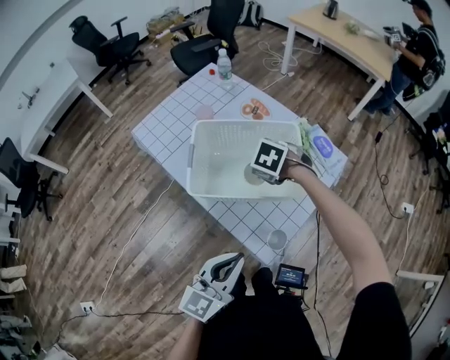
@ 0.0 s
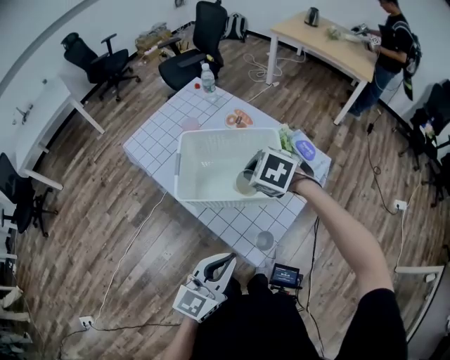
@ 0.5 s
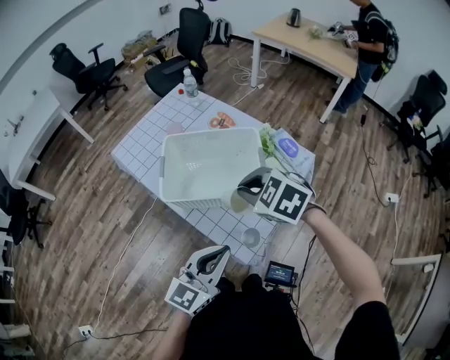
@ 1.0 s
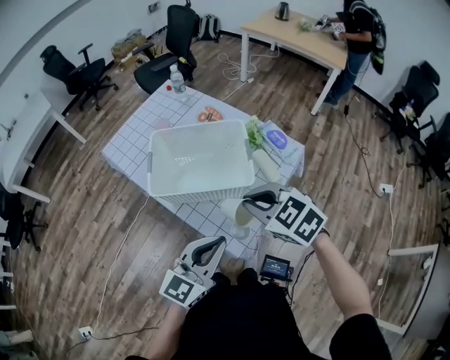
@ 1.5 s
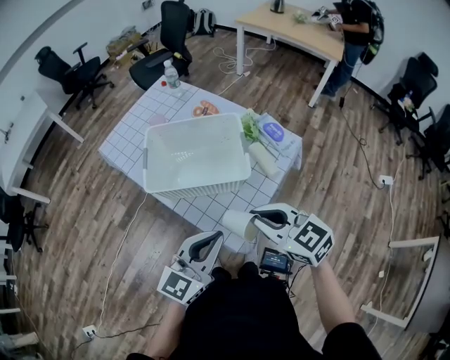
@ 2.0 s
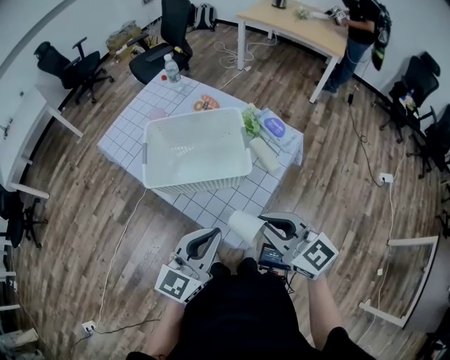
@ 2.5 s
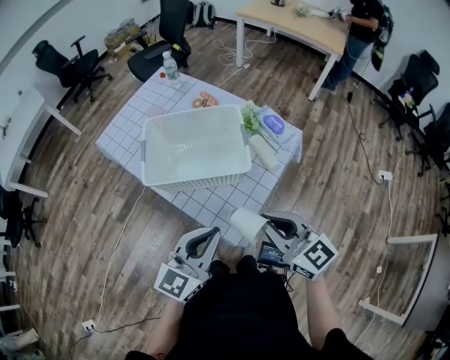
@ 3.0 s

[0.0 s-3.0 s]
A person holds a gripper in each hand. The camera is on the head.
0.0 to 1.5 s: The right gripper goes roughly 25 cm backward and upward, and swivels about 30 degrees; the left gripper moves to the right, roughly 5 cm.
1.5 to 3.0 s: The right gripper travels backward by approximately 10 cm, and tips its fingers upward by about 30 degrees.

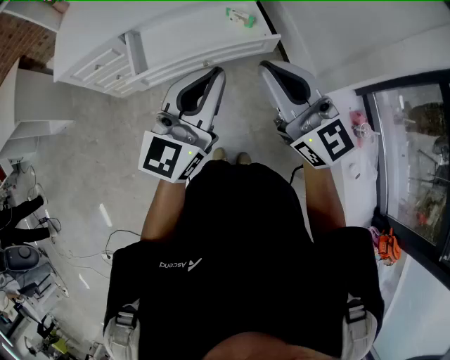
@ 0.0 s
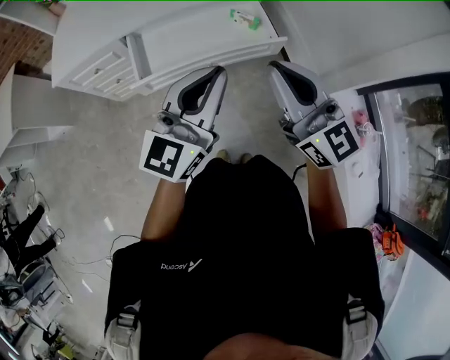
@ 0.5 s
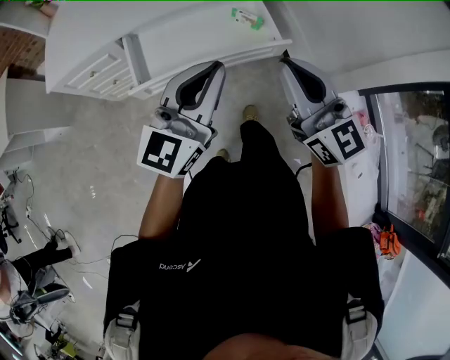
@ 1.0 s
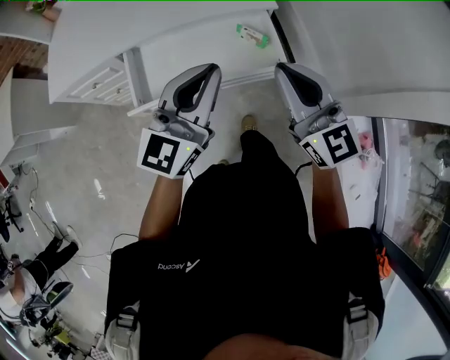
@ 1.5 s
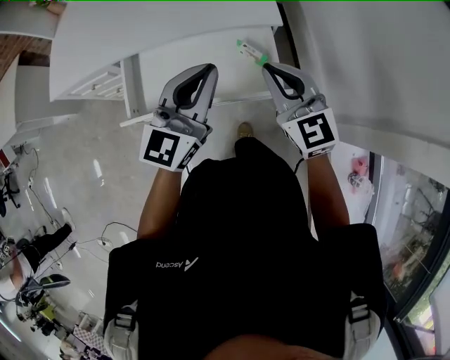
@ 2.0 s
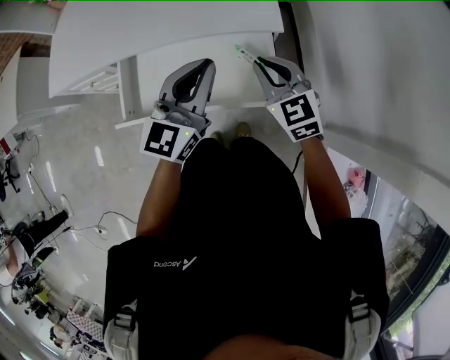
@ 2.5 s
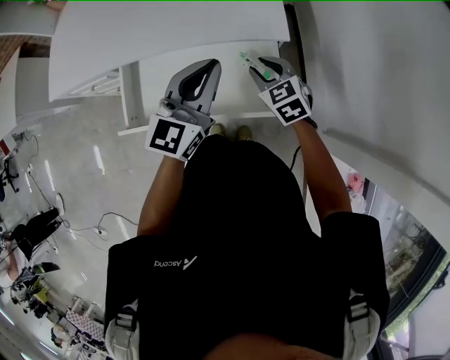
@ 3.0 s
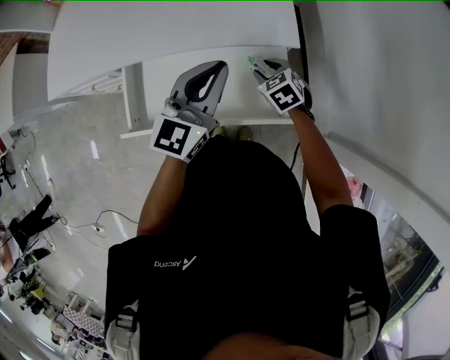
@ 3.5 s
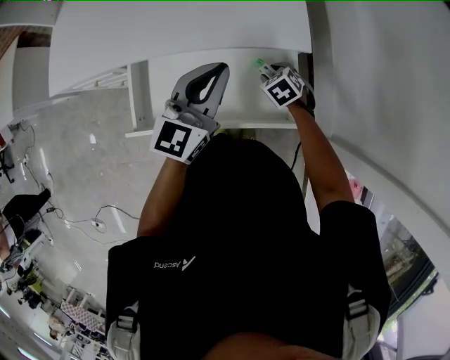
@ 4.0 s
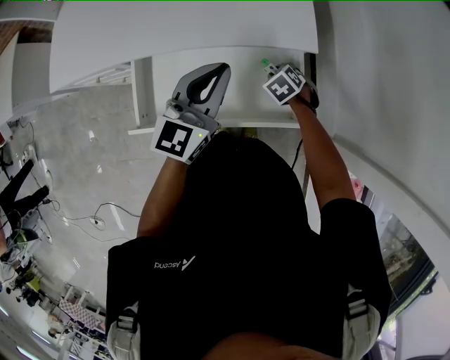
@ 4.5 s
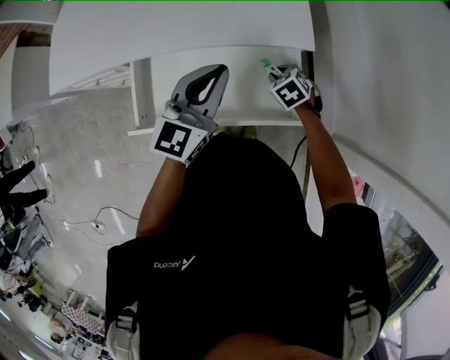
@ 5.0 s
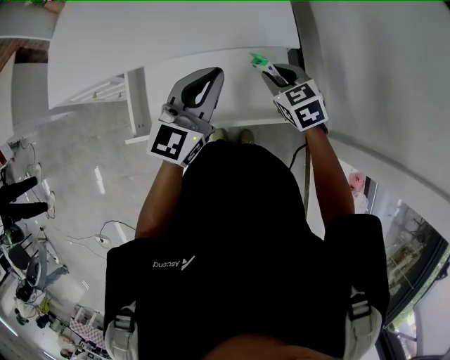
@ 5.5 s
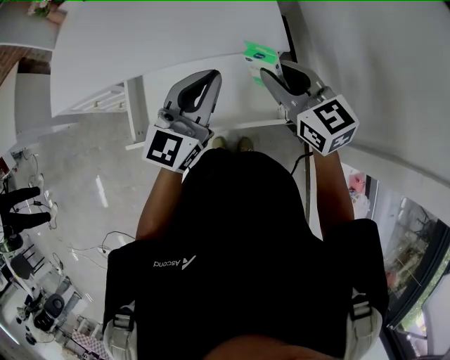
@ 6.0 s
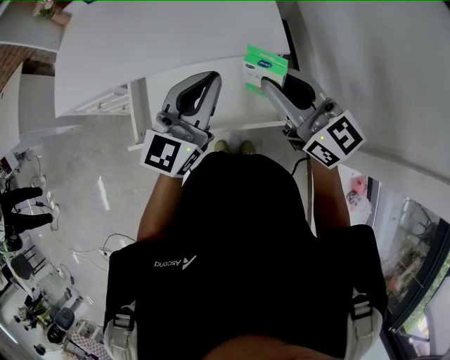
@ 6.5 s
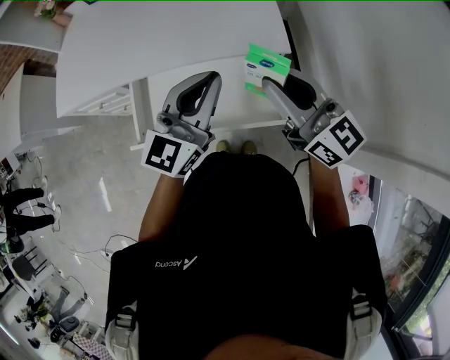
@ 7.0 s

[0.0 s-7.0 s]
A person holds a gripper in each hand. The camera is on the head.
0.0 to 2.0 s: The right gripper heads forward and downward, covering approximately 30 cm, and rotates some 20 degrees. The left gripper shifts roughly 30 cm forward.
2.0 to 3.5 s: The right gripper moves downward and forward, about 30 cm, points its fingers approximately 40 degrees further downward, and opens up. Meanwhile the left gripper moves forward and downward, about 15 cm.
5.0 to 7.0 s: The right gripper goes roughly 35 cm upward, and points its fingers some 70 degrees further upward, while the left gripper shifts some 10 cm upward.

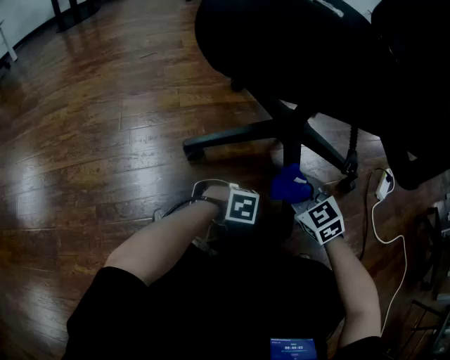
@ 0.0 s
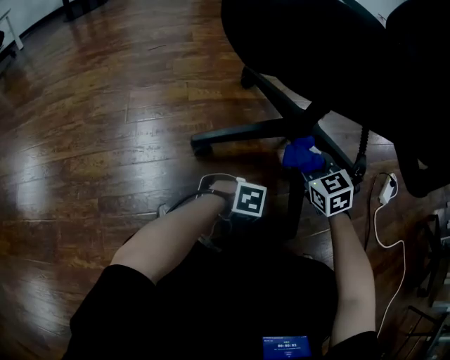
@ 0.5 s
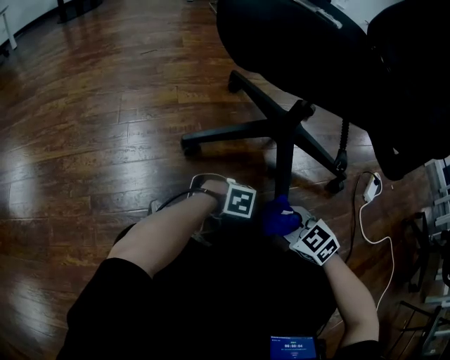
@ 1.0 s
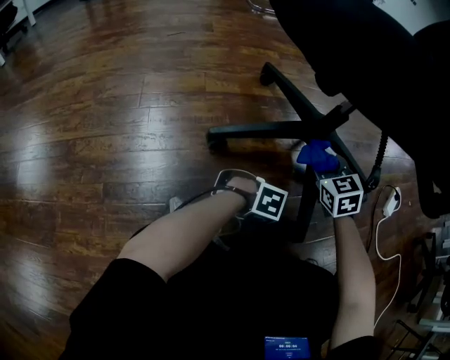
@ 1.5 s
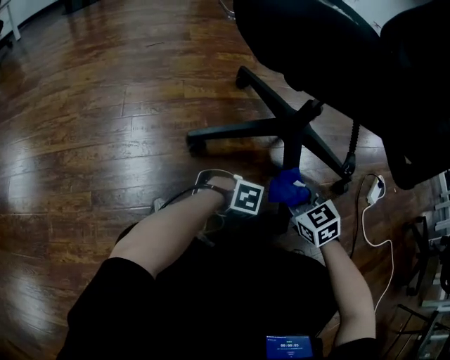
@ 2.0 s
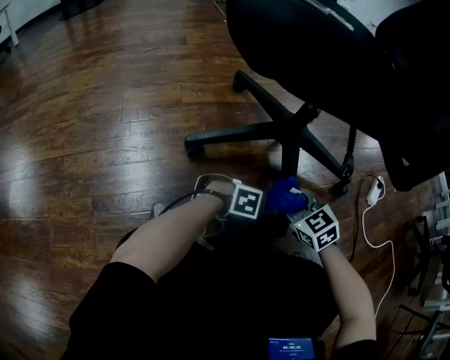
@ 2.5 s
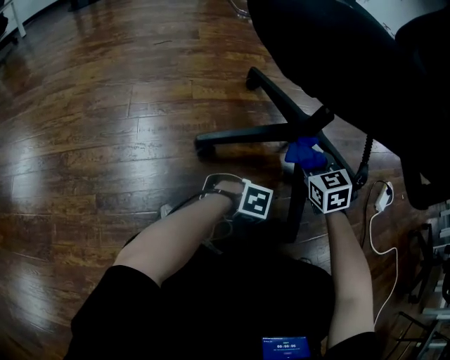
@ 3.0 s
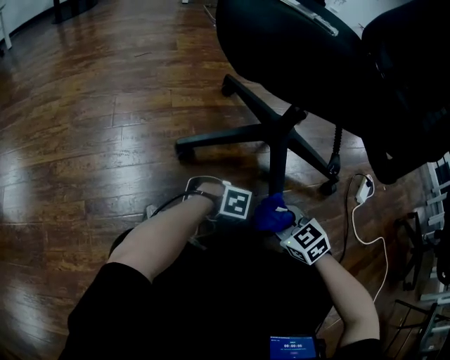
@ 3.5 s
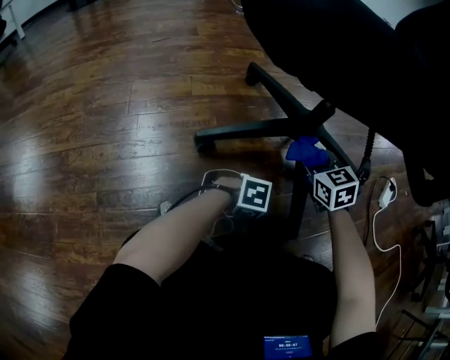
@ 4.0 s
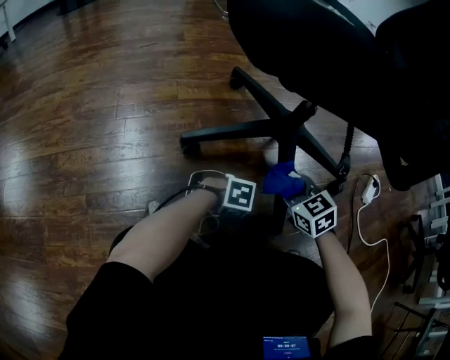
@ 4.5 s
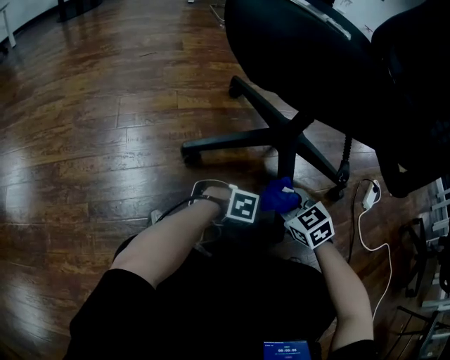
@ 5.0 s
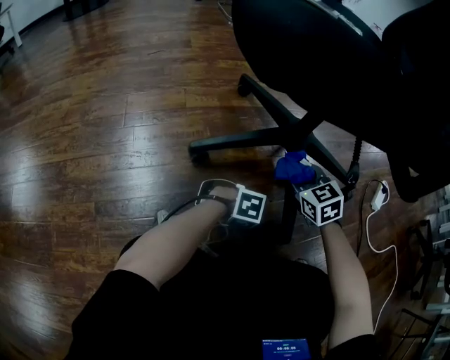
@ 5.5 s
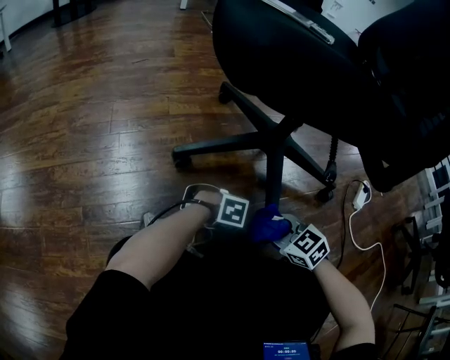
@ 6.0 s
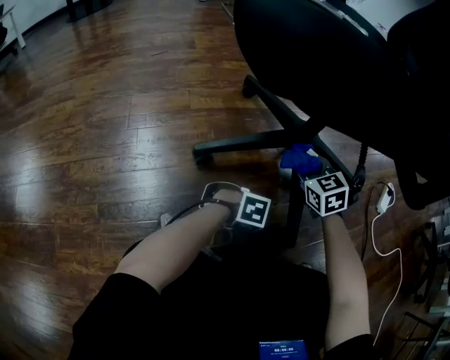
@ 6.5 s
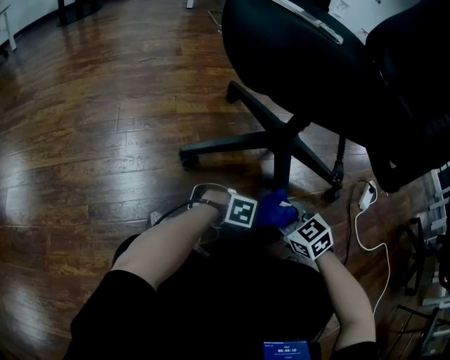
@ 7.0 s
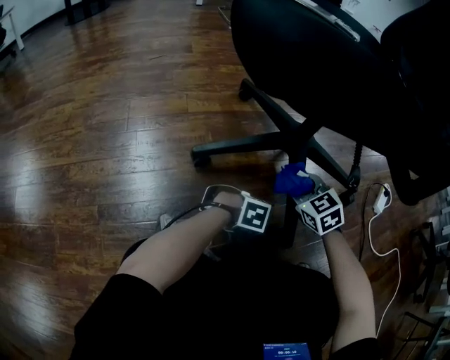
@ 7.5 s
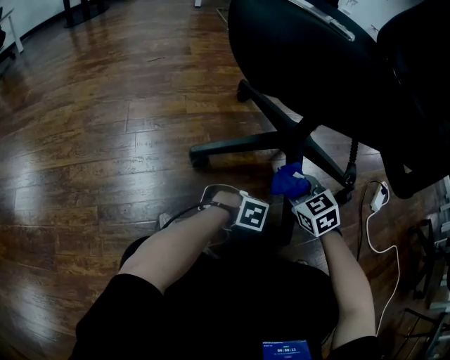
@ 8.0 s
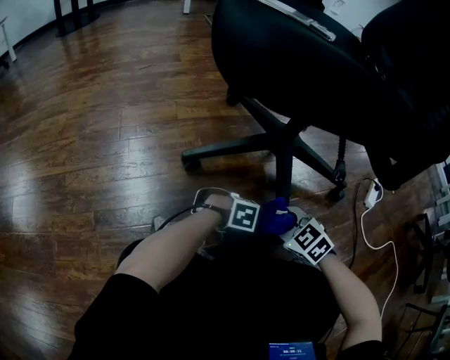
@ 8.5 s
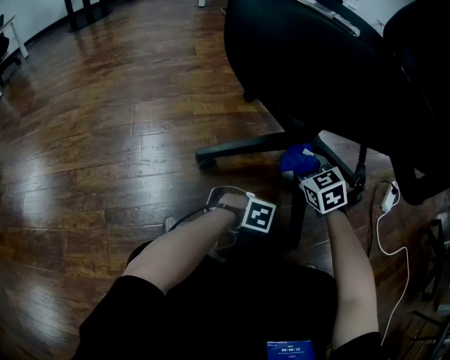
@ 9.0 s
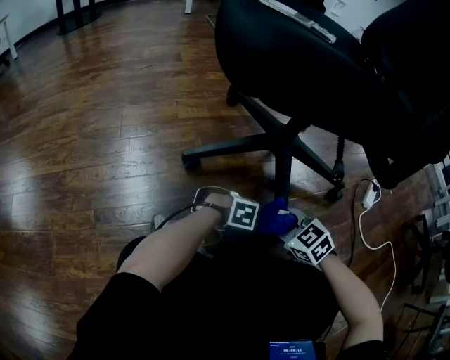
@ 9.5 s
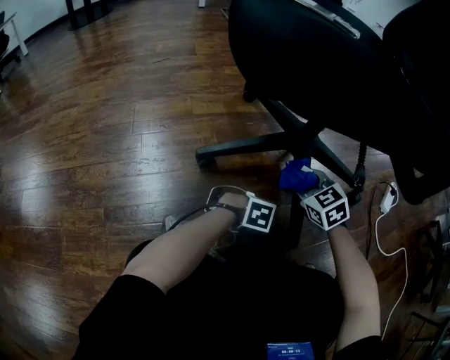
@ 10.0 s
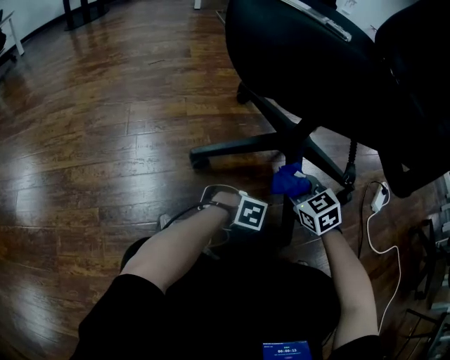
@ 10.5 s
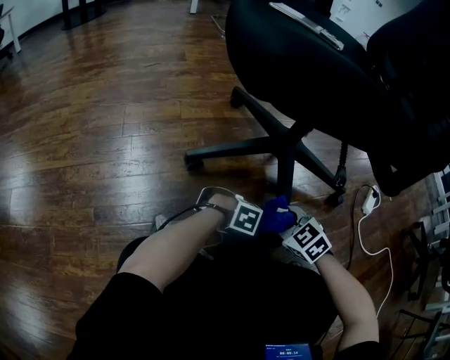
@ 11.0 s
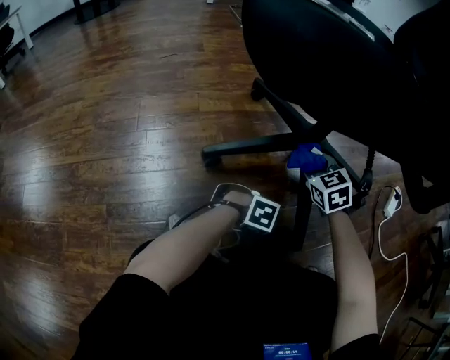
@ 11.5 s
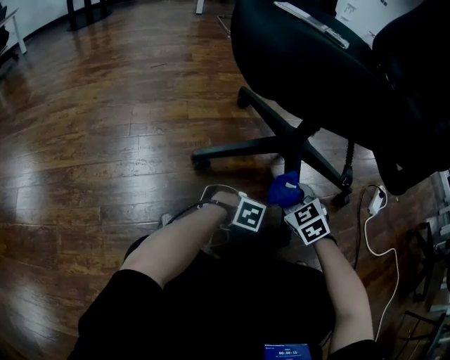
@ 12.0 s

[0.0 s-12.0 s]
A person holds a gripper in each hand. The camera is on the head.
2.0 to 4.0 s: The right gripper moves about 10 cm.
4.0 to 6.0 s: The right gripper shifts by approximately 20 cm, and changes its angle by roughly 30 degrees.

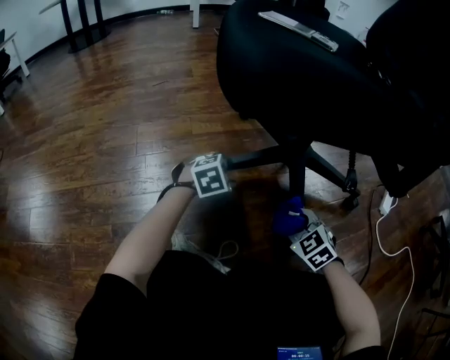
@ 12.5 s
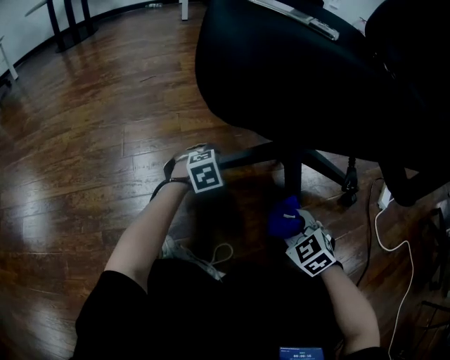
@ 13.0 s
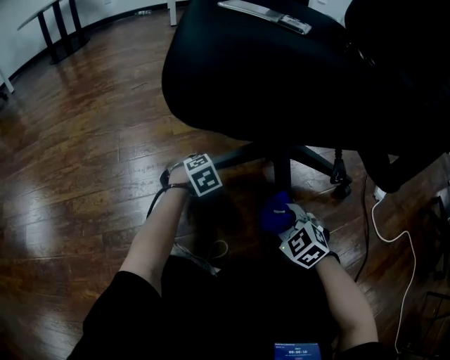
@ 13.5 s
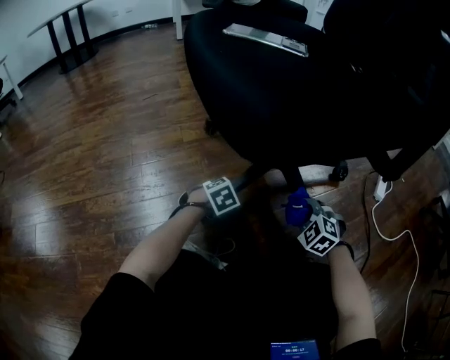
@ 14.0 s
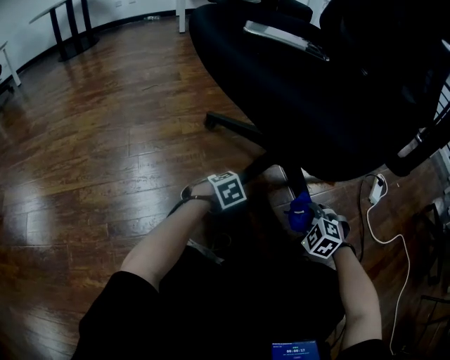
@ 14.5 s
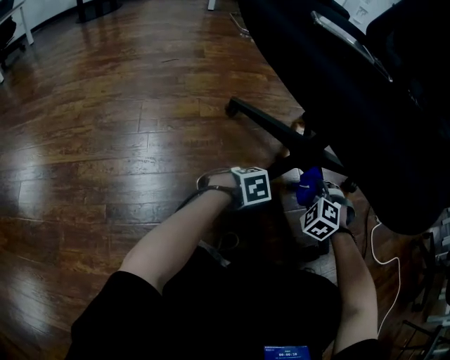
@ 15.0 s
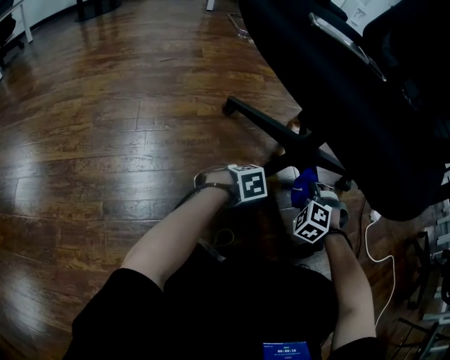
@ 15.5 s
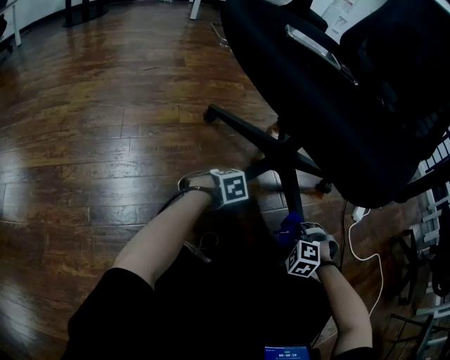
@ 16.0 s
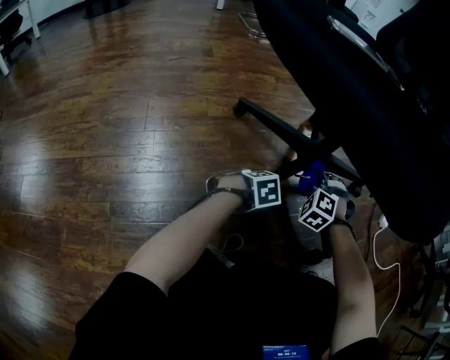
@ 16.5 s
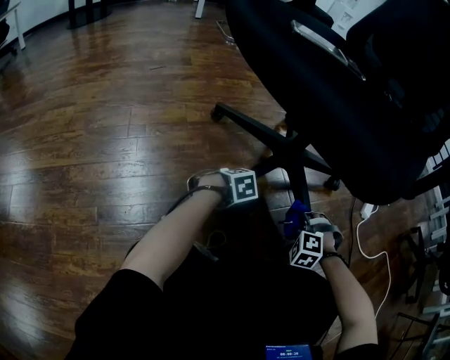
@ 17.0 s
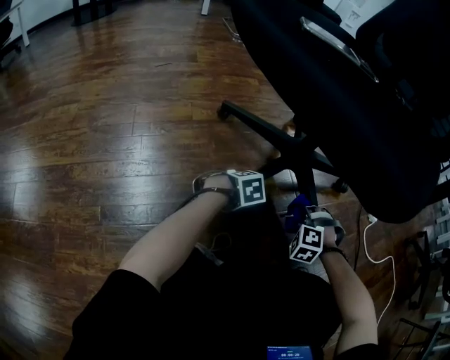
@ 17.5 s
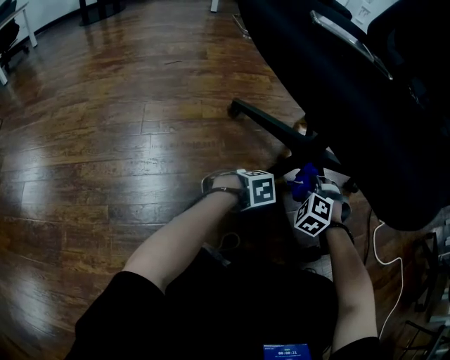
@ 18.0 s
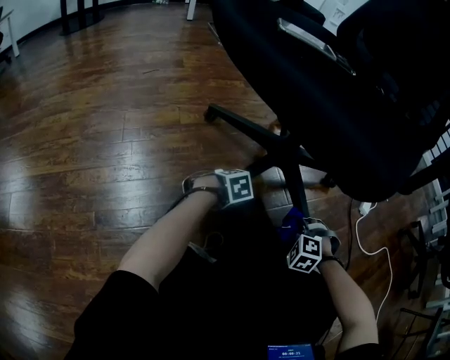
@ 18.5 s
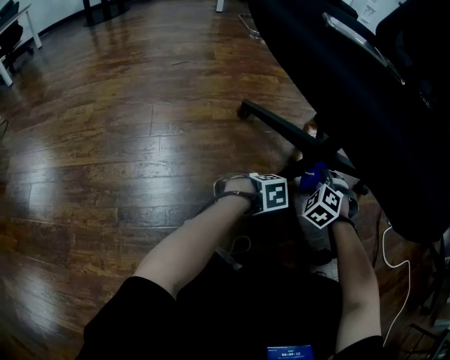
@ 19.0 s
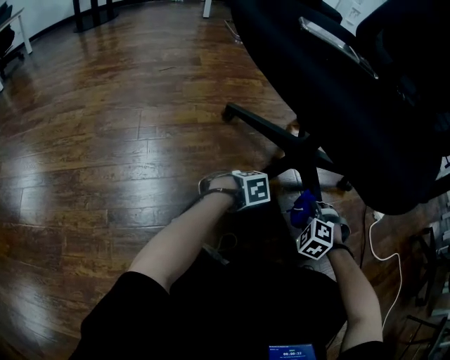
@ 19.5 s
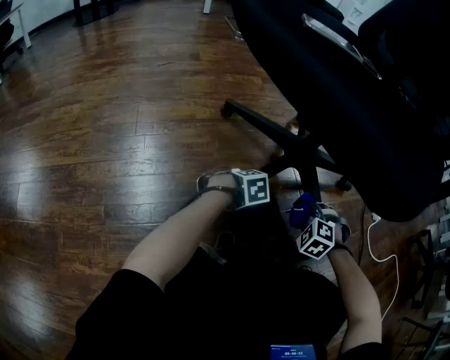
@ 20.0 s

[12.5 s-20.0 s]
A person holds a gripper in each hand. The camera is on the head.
12.5 to 14.5 s: The right gripper moves approximately 10 cm, and turns by some 30 degrees.
14.5 to 16.5 s: The right gripper shifts by some 15 cm, and rotates some 20 degrees.
